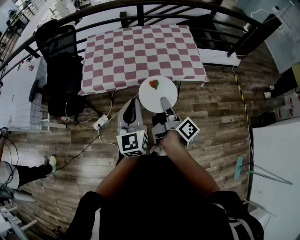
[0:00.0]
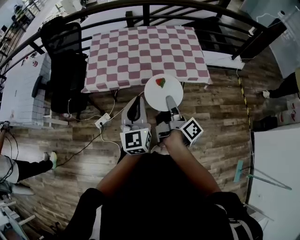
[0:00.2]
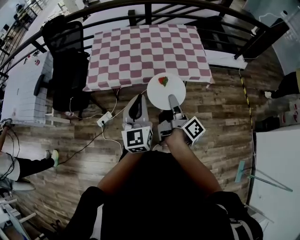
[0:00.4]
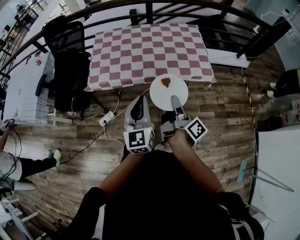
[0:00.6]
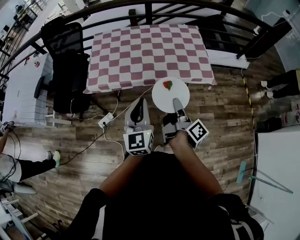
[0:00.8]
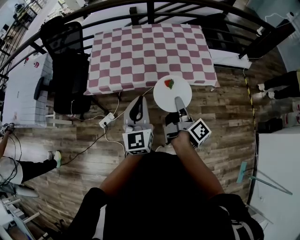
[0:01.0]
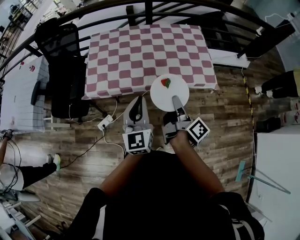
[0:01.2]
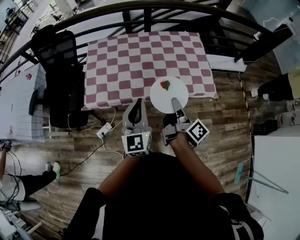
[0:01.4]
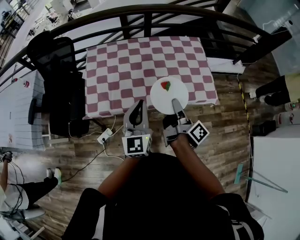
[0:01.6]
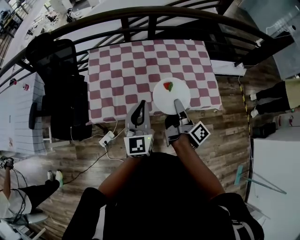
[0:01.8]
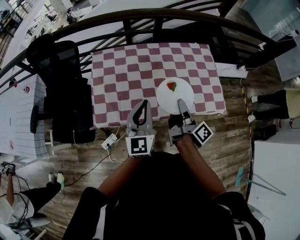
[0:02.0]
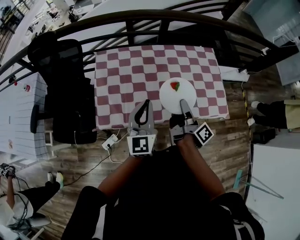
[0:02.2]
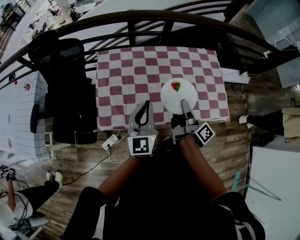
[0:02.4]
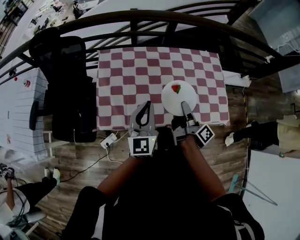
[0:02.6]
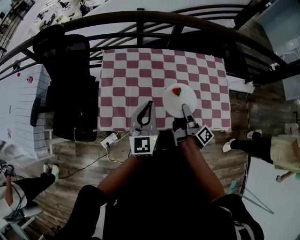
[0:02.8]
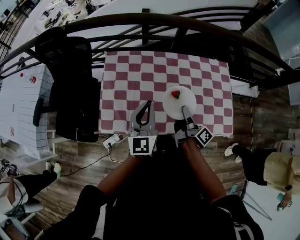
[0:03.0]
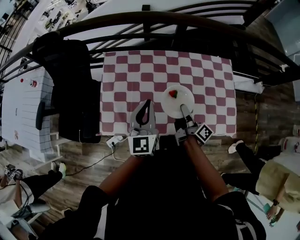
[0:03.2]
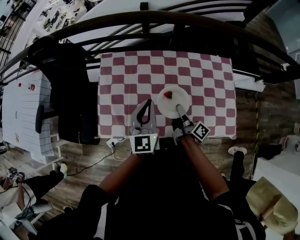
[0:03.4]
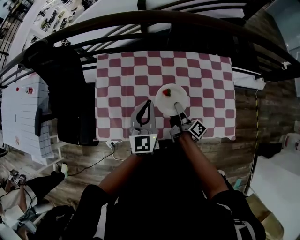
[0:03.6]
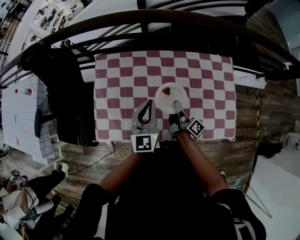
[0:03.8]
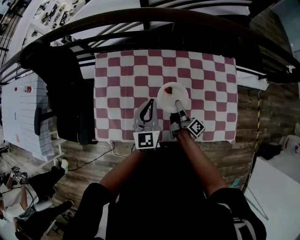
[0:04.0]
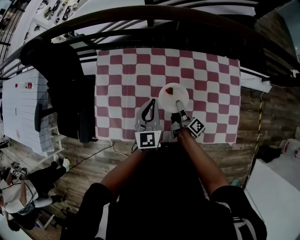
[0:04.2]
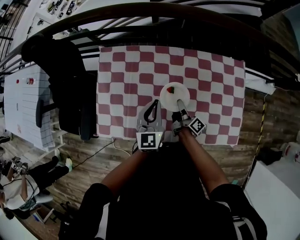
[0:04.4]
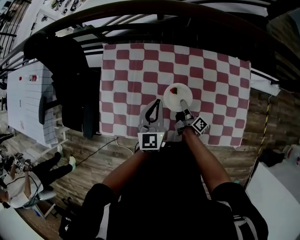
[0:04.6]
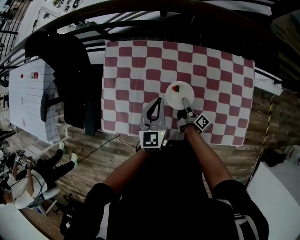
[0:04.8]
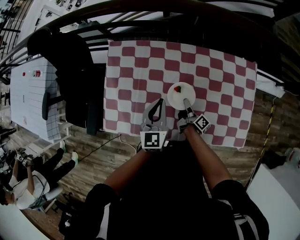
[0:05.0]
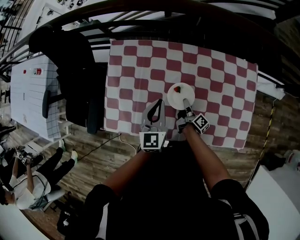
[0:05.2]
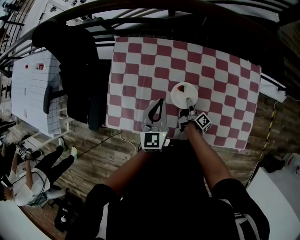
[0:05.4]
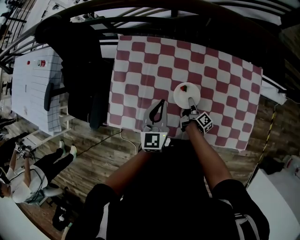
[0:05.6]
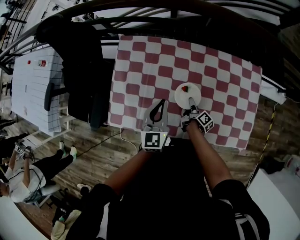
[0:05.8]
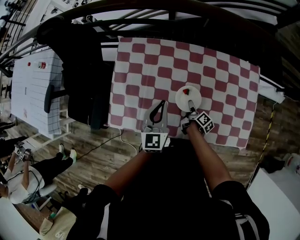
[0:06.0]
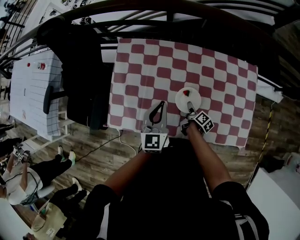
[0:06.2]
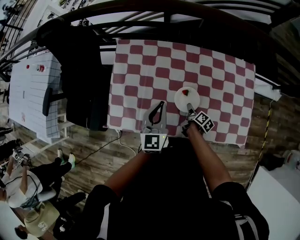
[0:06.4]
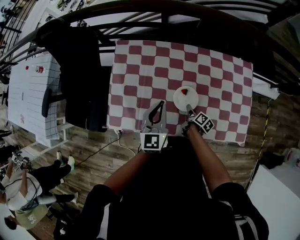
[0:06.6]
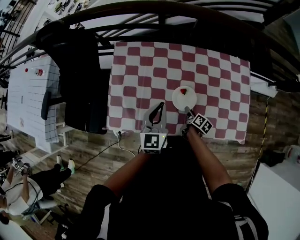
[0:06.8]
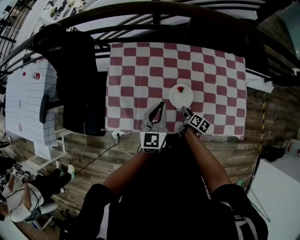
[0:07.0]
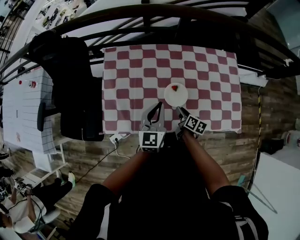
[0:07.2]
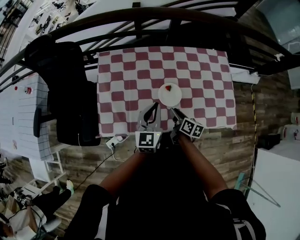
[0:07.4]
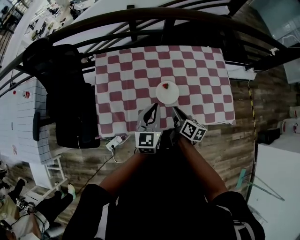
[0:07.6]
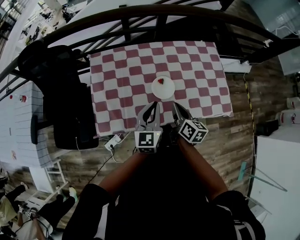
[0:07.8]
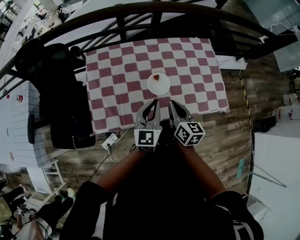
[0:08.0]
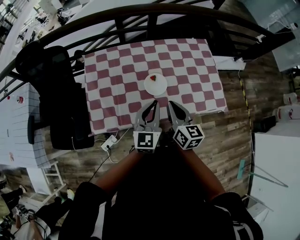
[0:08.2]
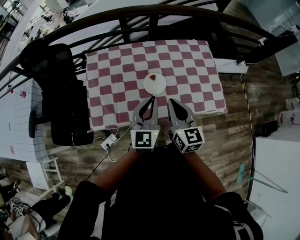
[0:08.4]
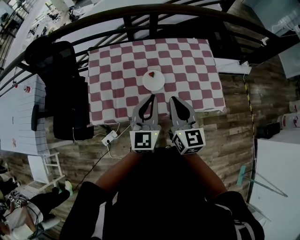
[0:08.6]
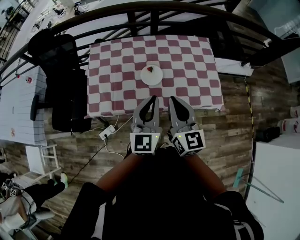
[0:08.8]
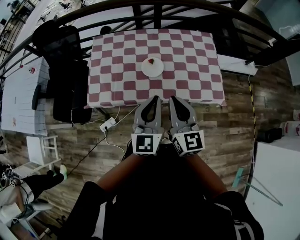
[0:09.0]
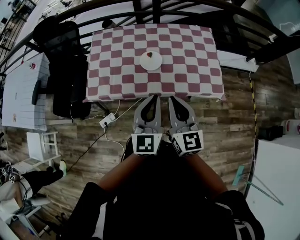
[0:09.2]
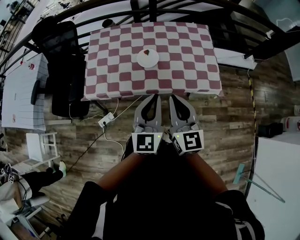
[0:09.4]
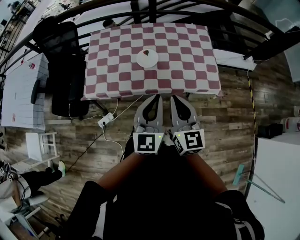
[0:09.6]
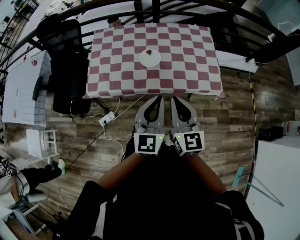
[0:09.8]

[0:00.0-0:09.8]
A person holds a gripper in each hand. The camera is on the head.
0:00.0 to 0:01.4: Both grippers travel together forward, approximately 15 cm.
0:01.4 to 0:02.8: Both grippers move forward and to the left, roughly 25 cm.
0:02.8 to 0:04.2: The right gripper is displaced downward and forward by about 20 cm, while the left gripper heads forward, downward and to the right, covering roughly 20 cm.
0:04.2 to 0:05.6: The left gripper moves to the left, roughly 5 cm; the right gripper goes approximately 10 cm downward.
0:05.6 to 0:07.0: The right gripper heads backward, covering approximately 10 cm, changes its angle by approximately 30 degrees, and opens up, while the left gripper moves backward, approximately 5 cm.
0:07.0 to 0:08.4: The right gripper heads upward, covering approximately 35 cm, rotates around the line of its fingers by some 50 degrees, counterclockwise from behind, and closes its fingers; the left gripper shifts about 15 cm backward, upward and to the right.
0:08.4 to 0:09.8: Both grippers travel together backward and to the right, approximately 20 cm.

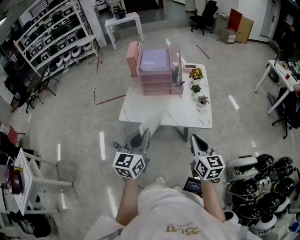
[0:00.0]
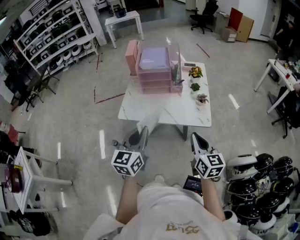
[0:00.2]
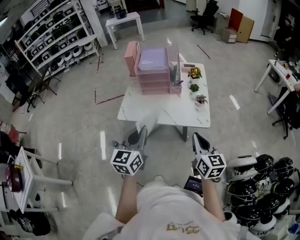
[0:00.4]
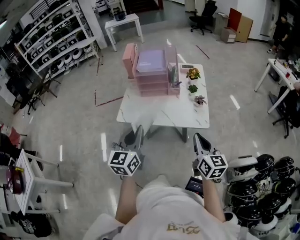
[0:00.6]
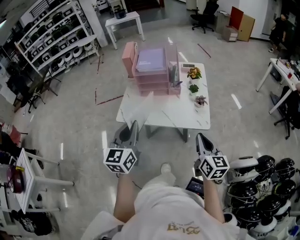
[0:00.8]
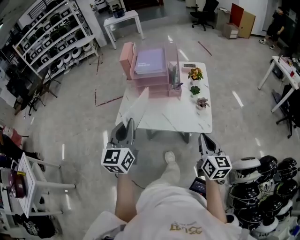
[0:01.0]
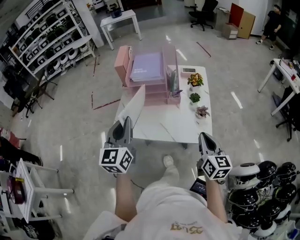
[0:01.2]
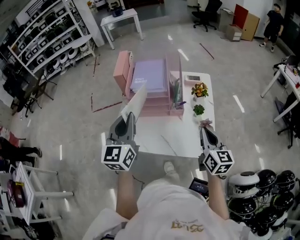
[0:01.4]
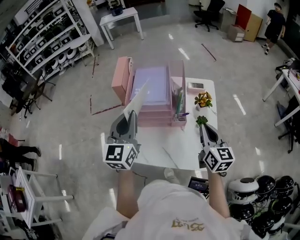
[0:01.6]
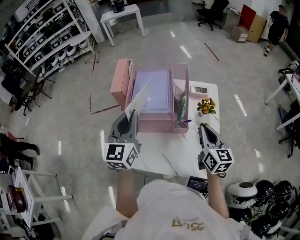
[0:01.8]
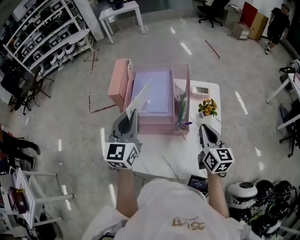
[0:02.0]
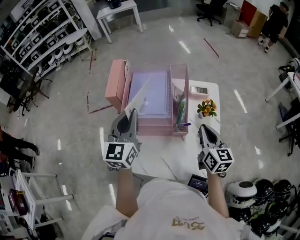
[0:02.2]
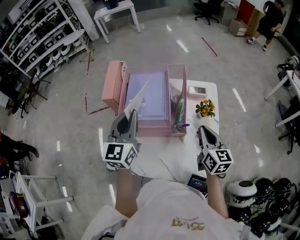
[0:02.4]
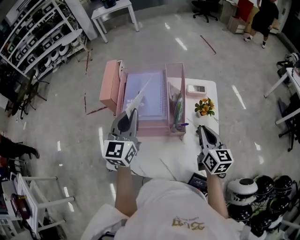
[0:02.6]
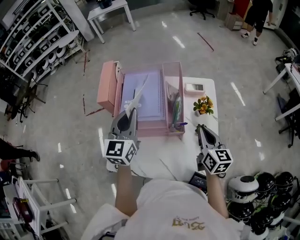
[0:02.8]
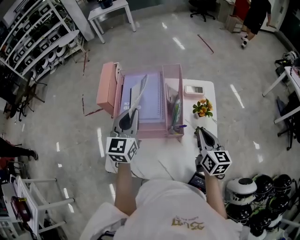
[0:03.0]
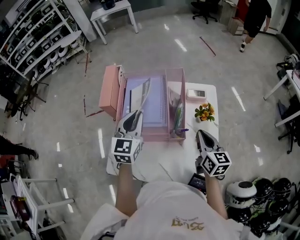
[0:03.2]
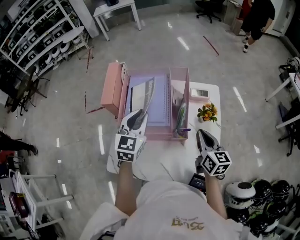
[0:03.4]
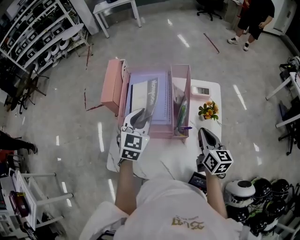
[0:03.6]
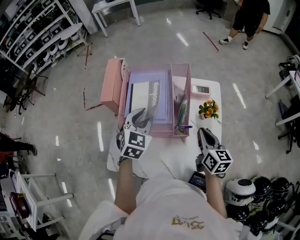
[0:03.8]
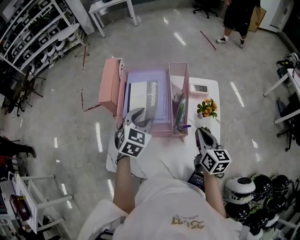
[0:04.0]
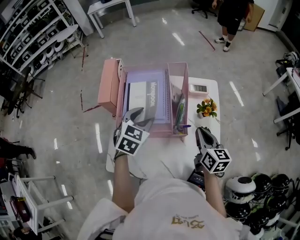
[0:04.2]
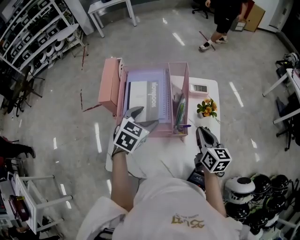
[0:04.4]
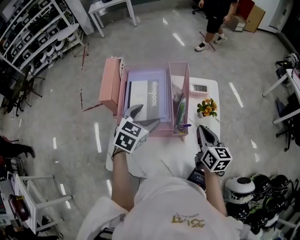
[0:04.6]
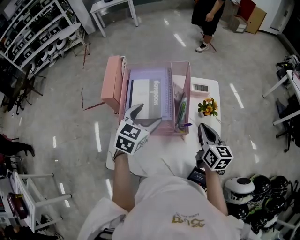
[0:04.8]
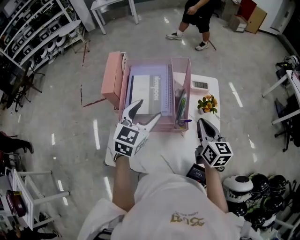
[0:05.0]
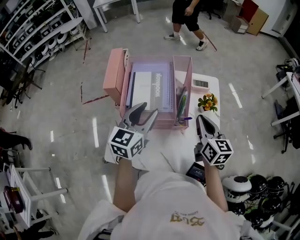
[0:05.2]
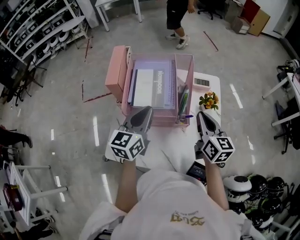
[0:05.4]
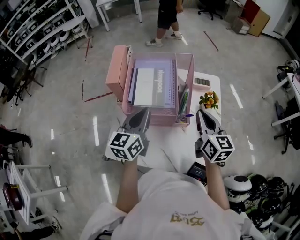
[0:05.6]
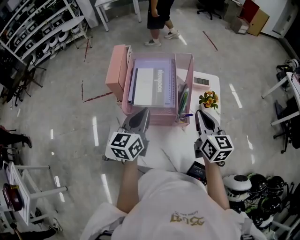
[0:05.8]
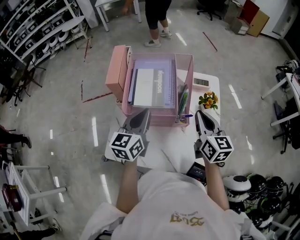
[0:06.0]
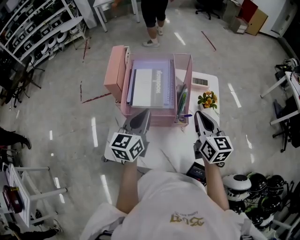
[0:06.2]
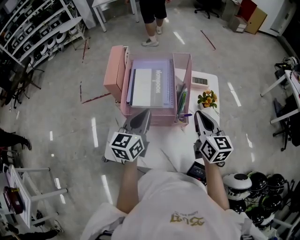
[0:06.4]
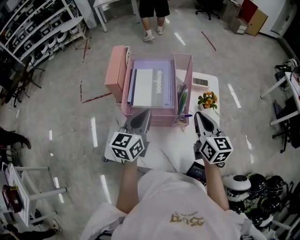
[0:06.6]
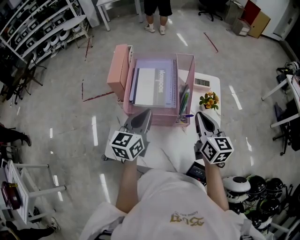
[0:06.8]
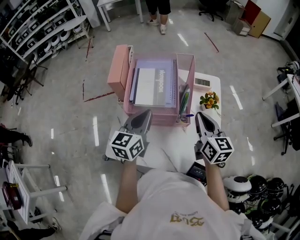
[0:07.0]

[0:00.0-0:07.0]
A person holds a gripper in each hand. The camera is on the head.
0:00.0 to 0:01.4: Both grippers travel together forward, roughly 25 cm.
0:01.4 to 0:02.8: The two grippers go about 20 cm forward.
0:02.8 to 0:04.2: The left gripper travels downward by roughly 10 cm, tilts its fingers approximately 30 degrees downward, and opens its fingers.
0:04.2 to 0:05.6: The left gripper shifts approximately 10 cm backward and upward, angles its fingers upward, by some 30 degrees, and closes its fingers; the right gripper shifts some 5 cm upward.
0:05.6 to 0:07.0: The grippers move only a little.

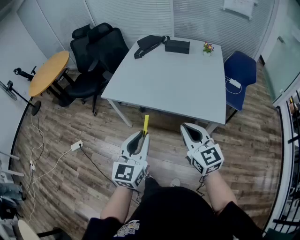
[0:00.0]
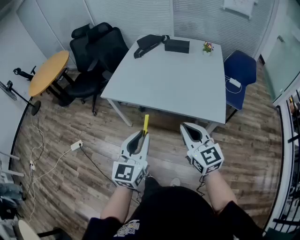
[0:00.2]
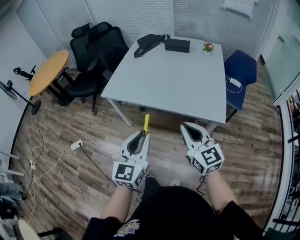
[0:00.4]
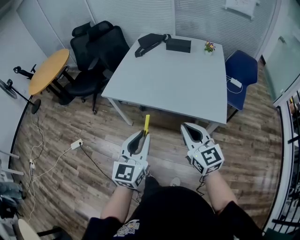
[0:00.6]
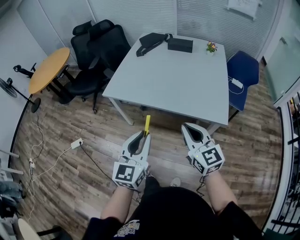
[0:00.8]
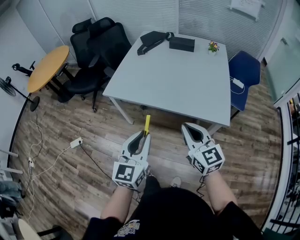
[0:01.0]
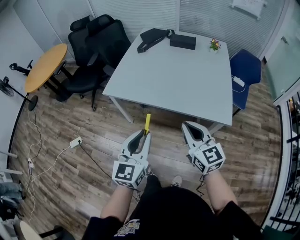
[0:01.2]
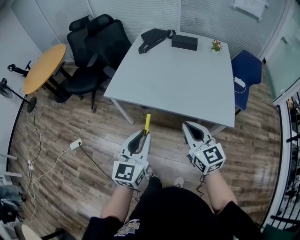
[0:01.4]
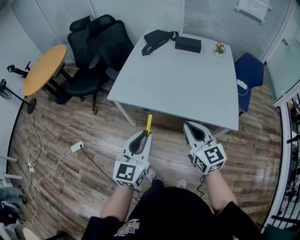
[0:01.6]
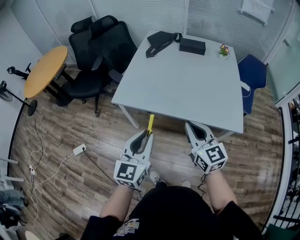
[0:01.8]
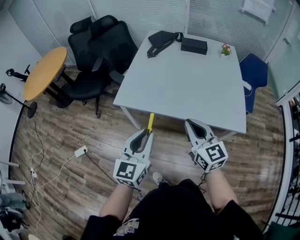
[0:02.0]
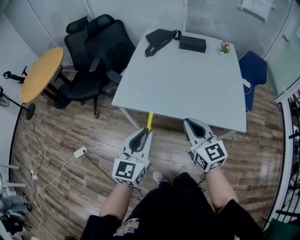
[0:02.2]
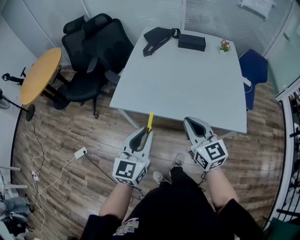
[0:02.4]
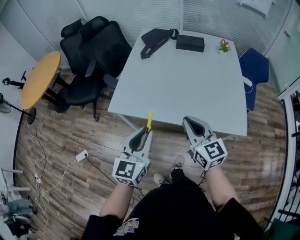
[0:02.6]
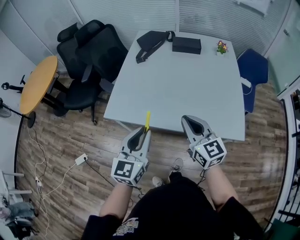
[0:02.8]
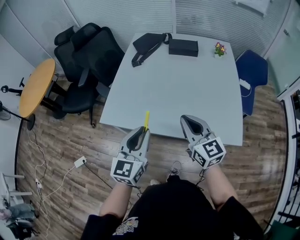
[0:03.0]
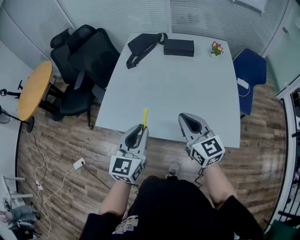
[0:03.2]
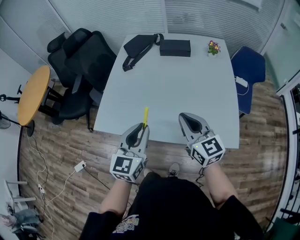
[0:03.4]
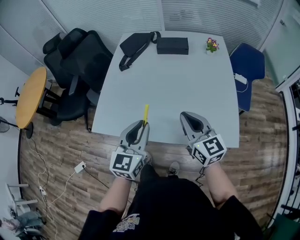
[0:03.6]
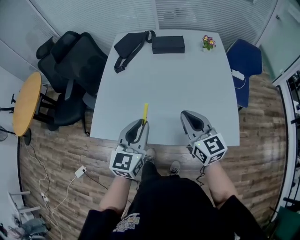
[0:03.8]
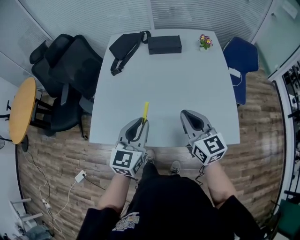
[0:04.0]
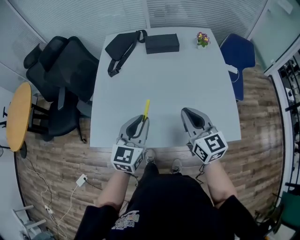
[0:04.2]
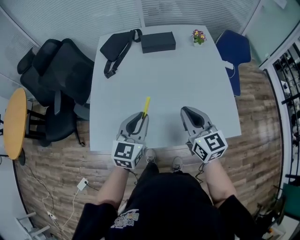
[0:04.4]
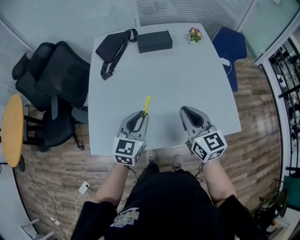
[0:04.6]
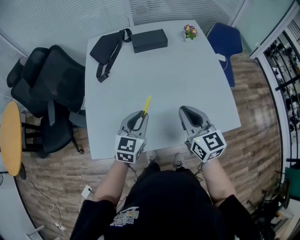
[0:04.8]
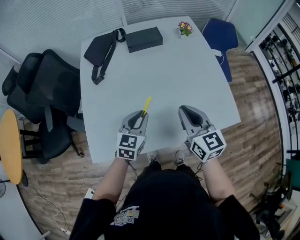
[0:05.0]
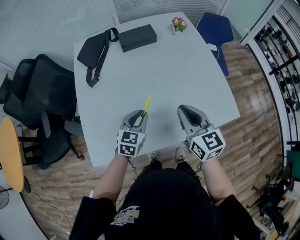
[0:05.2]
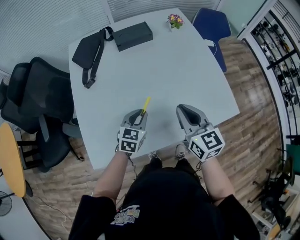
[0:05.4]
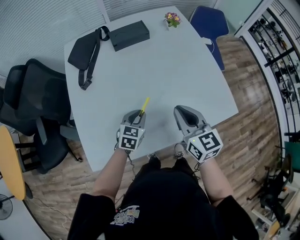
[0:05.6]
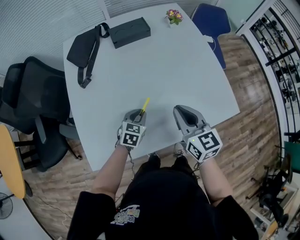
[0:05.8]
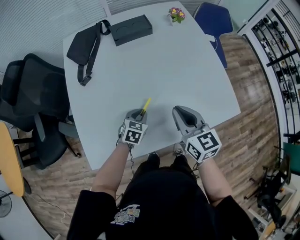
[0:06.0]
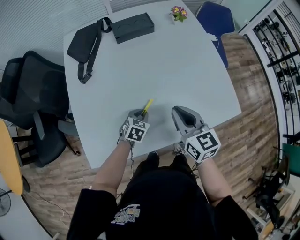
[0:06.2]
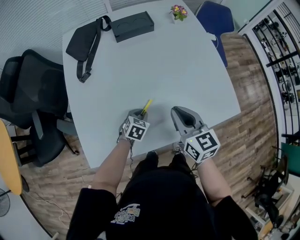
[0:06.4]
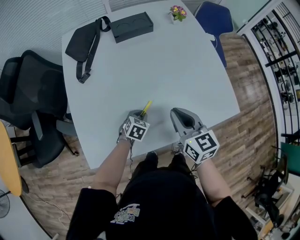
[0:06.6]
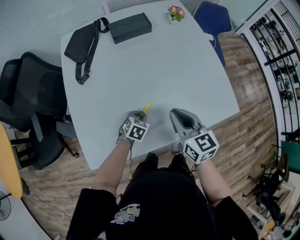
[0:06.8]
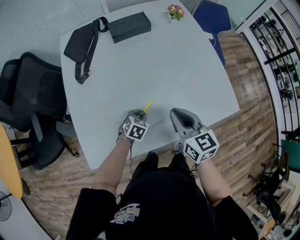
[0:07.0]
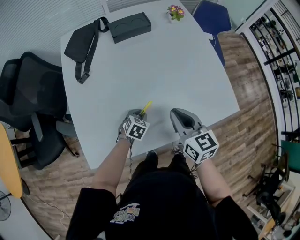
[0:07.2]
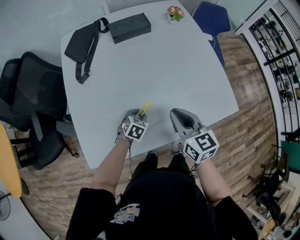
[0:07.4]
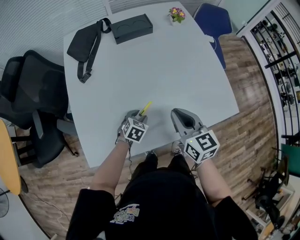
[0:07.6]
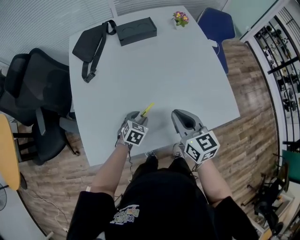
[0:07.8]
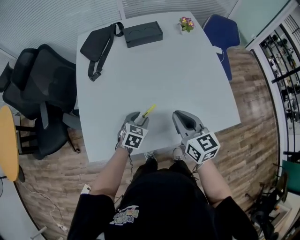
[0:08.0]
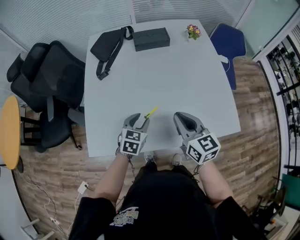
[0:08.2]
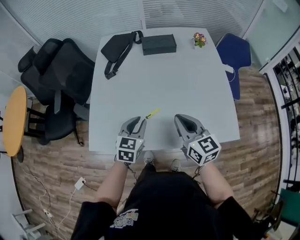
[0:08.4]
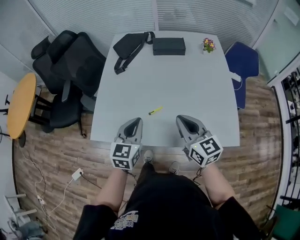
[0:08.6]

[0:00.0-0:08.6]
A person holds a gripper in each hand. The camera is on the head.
0:00.0 to 0:01.4: The grippers both shift forward and to the left by roughly 10 cm.
0:01.4 to 0:02.8: Both grippers move forward, some 15 cm.
0:02.8 to 0:04.4: Both grippers travel together forward, approximately 20 cm.
0:04.4 to 0:05.8: The right gripper goes about 5 cm downward; the left gripper is displaced downward by about 20 cm, and changes its angle by about 30 degrees.
0:05.8 to 0:07.2: The left gripper moves downward, roughly 5 cm.
0:07.2 to 0:08.6: The right gripper travels upward by some 5 cm, and swivels approximately 30 degrees; the left gripper heads upward, covering about 25 cm, tilts its fingers some 40 degrees upward, and opens, then closes again.
